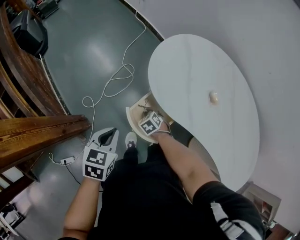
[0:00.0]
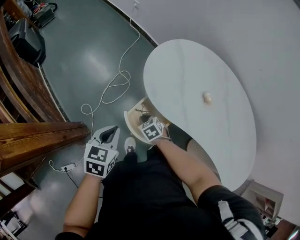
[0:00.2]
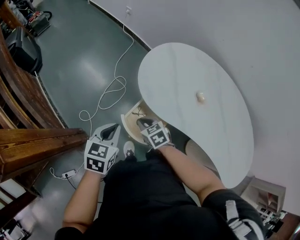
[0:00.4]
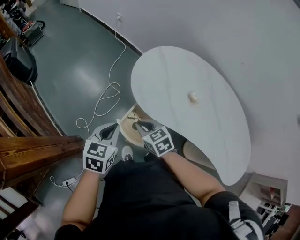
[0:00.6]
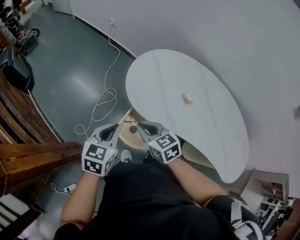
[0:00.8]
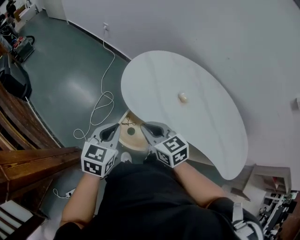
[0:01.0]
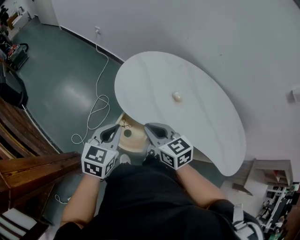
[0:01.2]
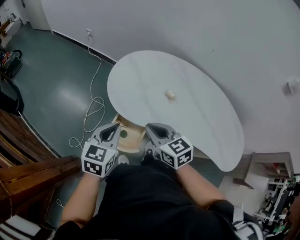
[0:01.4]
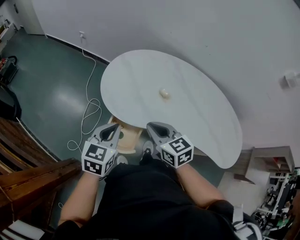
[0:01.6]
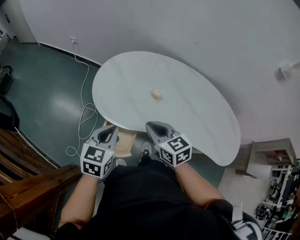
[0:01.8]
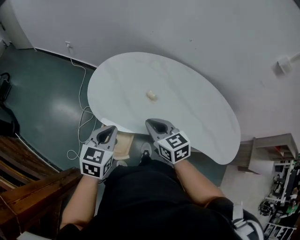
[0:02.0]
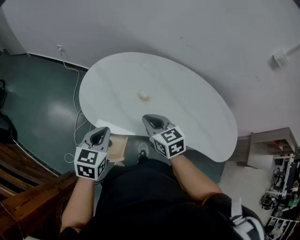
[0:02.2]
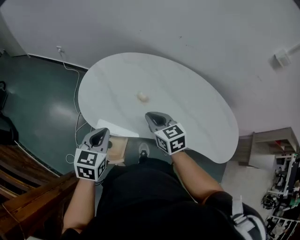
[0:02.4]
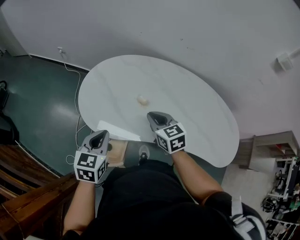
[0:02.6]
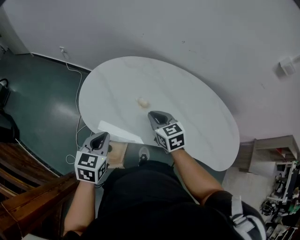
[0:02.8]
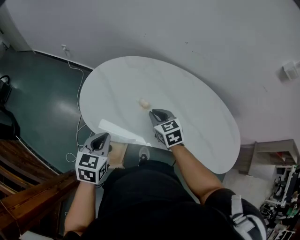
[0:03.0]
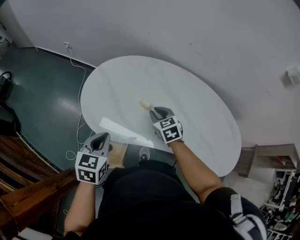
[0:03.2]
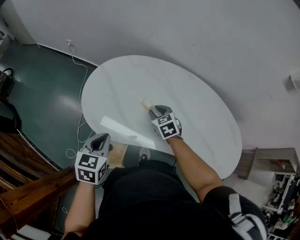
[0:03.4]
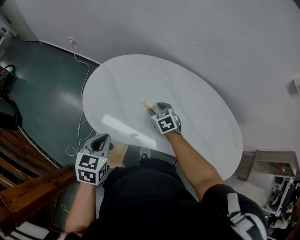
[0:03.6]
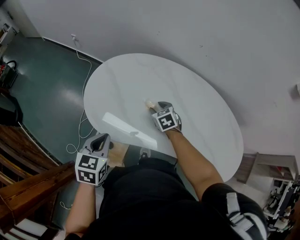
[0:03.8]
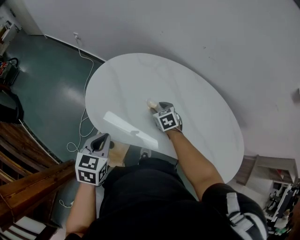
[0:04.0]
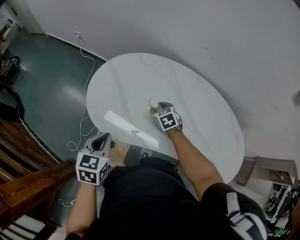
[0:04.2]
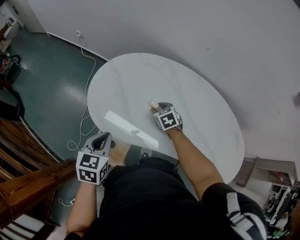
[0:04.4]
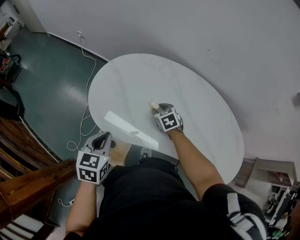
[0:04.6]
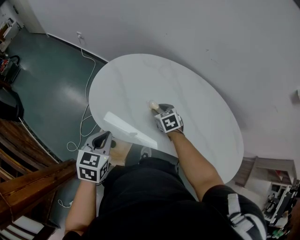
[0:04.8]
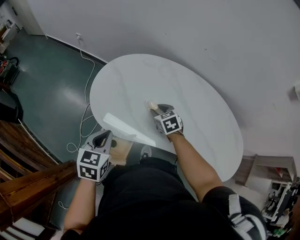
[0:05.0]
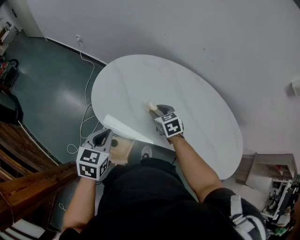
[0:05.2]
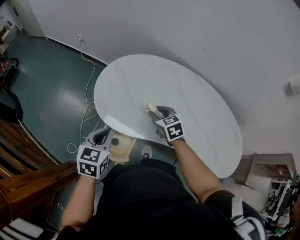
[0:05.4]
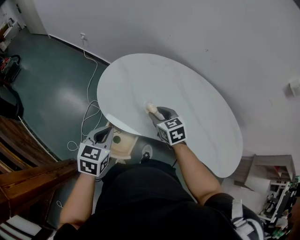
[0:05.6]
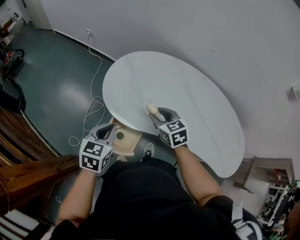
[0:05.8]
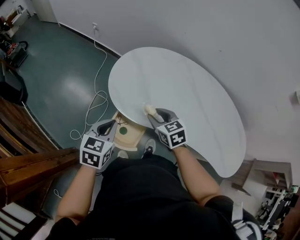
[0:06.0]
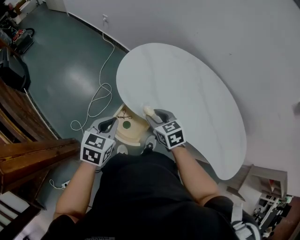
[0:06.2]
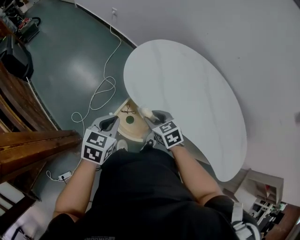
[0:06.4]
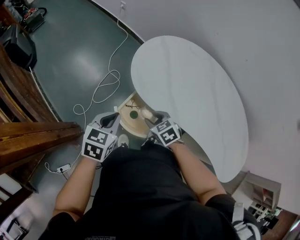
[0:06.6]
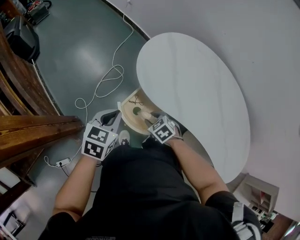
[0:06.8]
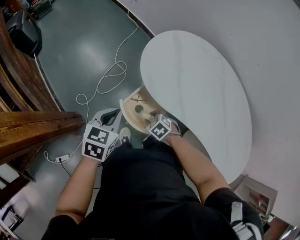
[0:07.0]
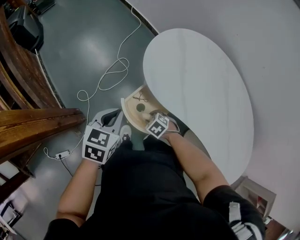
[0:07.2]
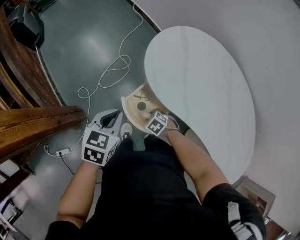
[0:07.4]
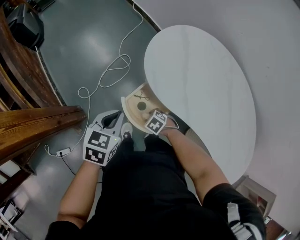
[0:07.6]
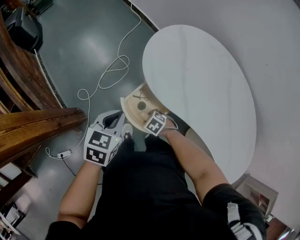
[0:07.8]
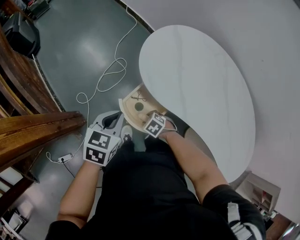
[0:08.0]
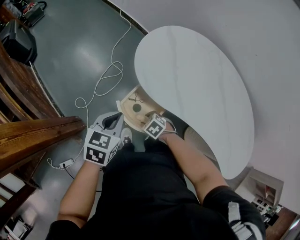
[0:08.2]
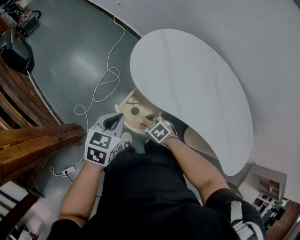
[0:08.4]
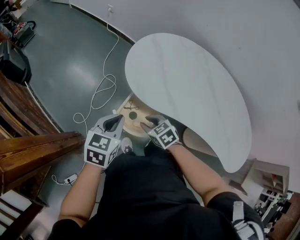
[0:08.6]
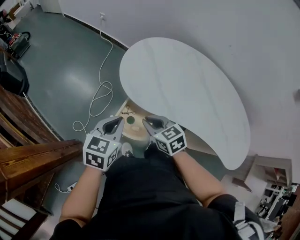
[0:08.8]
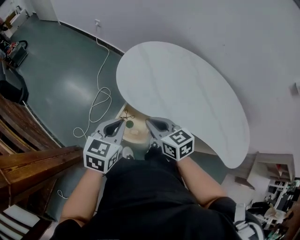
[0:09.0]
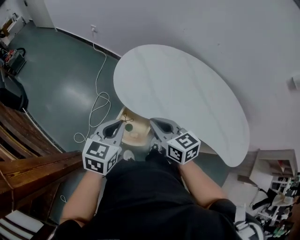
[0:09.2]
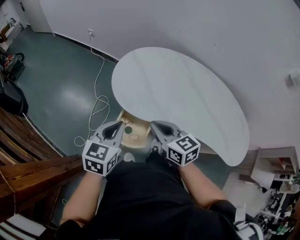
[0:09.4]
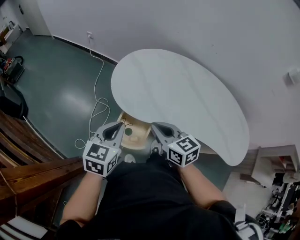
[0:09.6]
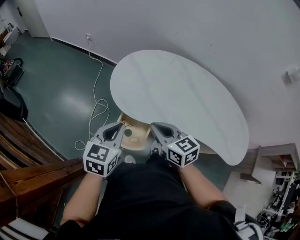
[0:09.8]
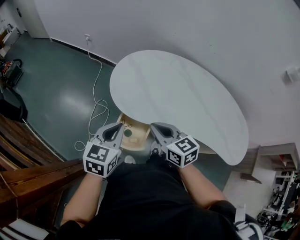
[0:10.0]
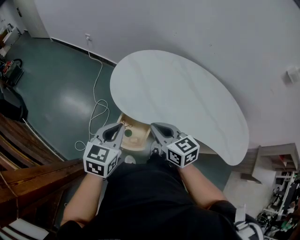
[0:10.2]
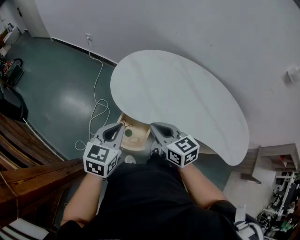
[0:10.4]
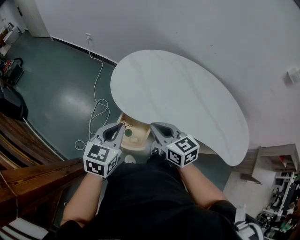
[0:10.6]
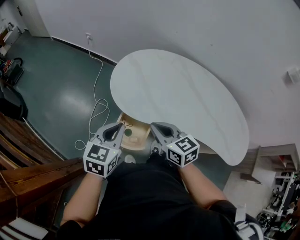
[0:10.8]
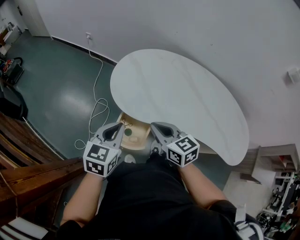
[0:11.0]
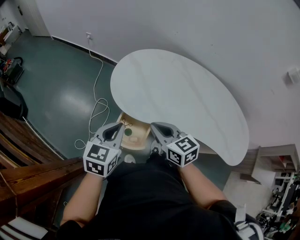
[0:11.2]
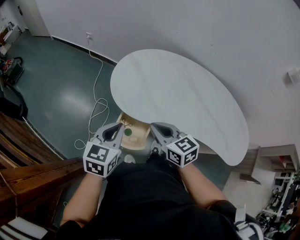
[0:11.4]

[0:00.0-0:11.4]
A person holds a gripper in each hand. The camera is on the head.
0:00.0 to 0:01.4: The left gripper is displaced upward, to the right and forward by about 20 cm, and changes its angle by some 30 degrees; the right gripper is displaced upward by some 35 cm, and points its fingers some 40 degrees further upward.
0:01.4 to 0:02.8: The right gripper heads to the right and forward, covering some 20 cm. Meanwhile the left gripper travels to the right and forward by some 10 cm.
0:02.8 to 0:04.2: The right gripper goes about 15 cm downward and forward, changes its angle by approximately 20 degrees, and opens its fingers.
0:04.2 to 0:05.6: The left gripper is displaced to the left by approximately 5 cm; the right gripper travels upward, backward and to the left by approximately 20 cm.
0:05.6 to 0:07.2: The left gripper moves approximately 15 cm; the right gripper heads downward, covering about 25 cm, and angles its fingers downward, by approximately 30 degrees.
0:07.2 to 0:08.6: The right gripper moves upward, some 15 cm, and turns by roughly 30 degrees.
0:08.6 to 0:10.0: The left gripper shifts approximately 5 cm upward. Meanwhile the right gripper travels upward by roughly 20 cm, swivels approximately 40 degrees, and closes.
0:10.0 to 0:11.4: Both grippers stay about where they are.

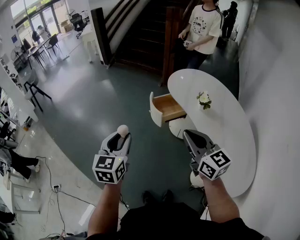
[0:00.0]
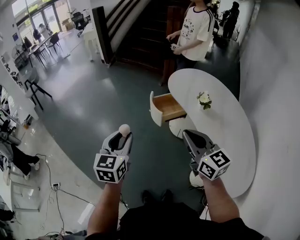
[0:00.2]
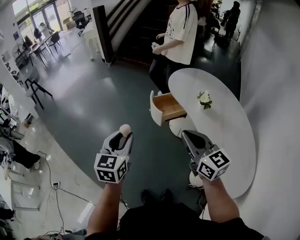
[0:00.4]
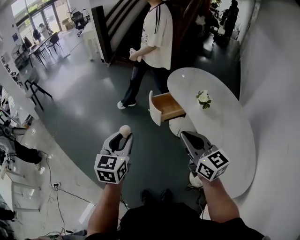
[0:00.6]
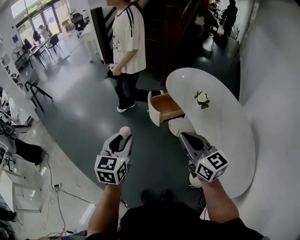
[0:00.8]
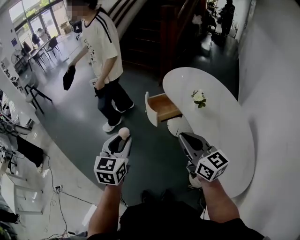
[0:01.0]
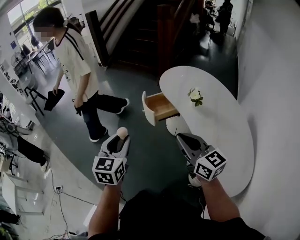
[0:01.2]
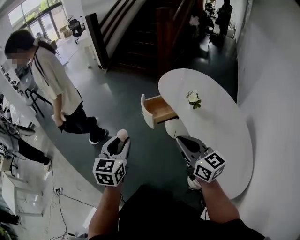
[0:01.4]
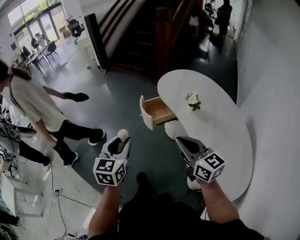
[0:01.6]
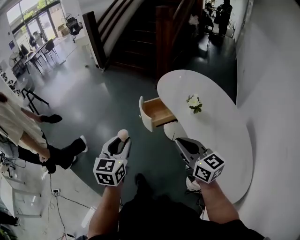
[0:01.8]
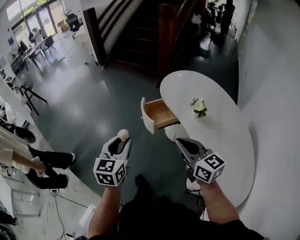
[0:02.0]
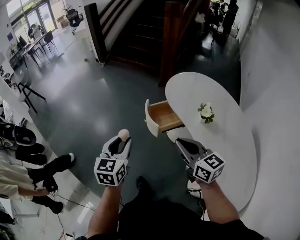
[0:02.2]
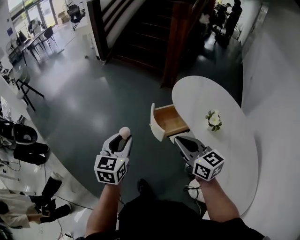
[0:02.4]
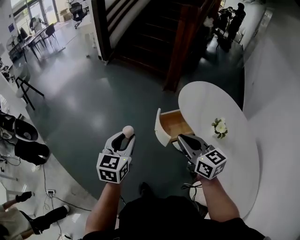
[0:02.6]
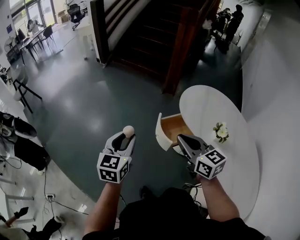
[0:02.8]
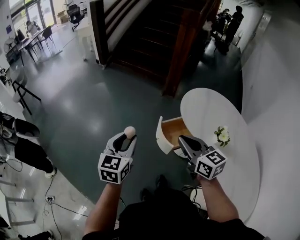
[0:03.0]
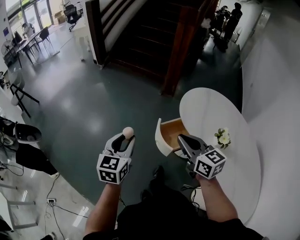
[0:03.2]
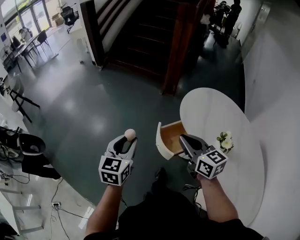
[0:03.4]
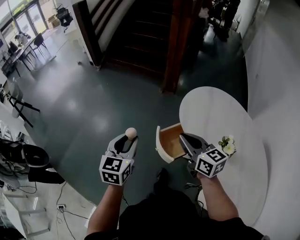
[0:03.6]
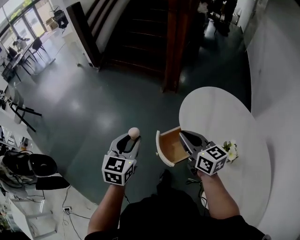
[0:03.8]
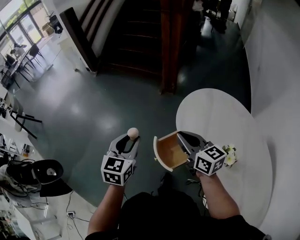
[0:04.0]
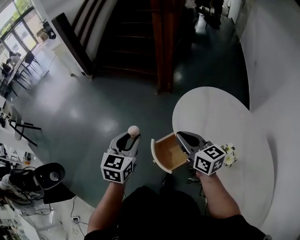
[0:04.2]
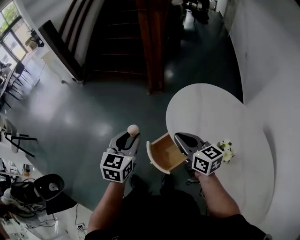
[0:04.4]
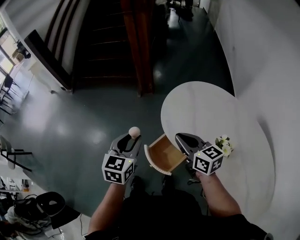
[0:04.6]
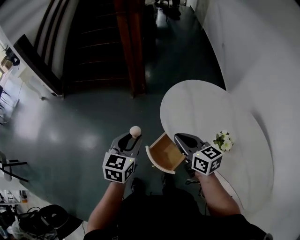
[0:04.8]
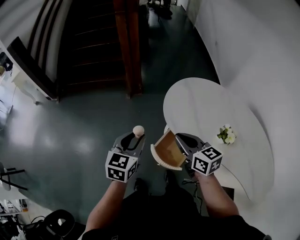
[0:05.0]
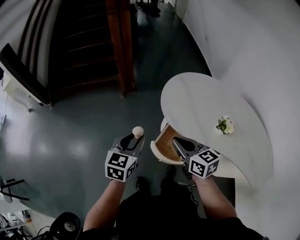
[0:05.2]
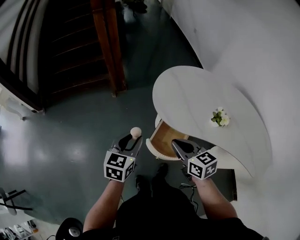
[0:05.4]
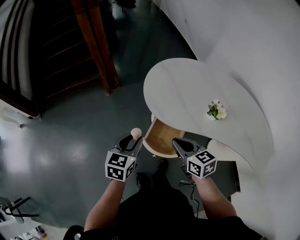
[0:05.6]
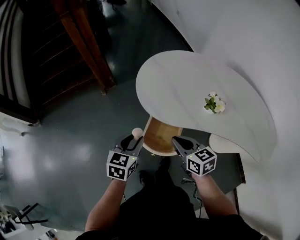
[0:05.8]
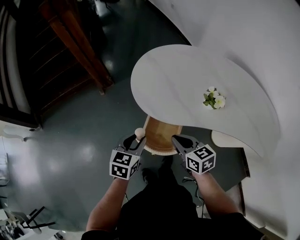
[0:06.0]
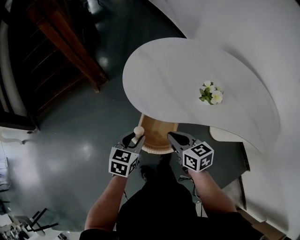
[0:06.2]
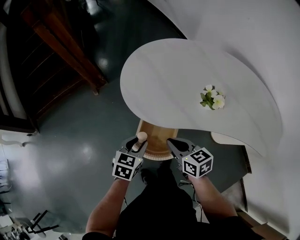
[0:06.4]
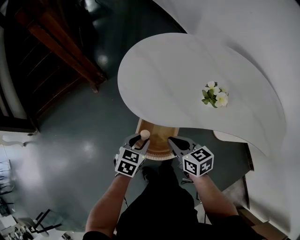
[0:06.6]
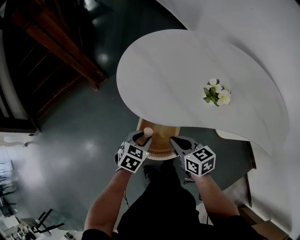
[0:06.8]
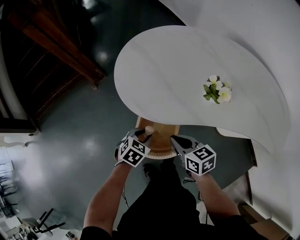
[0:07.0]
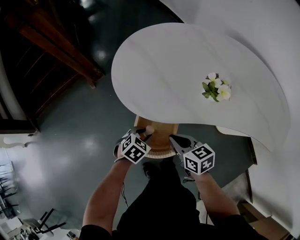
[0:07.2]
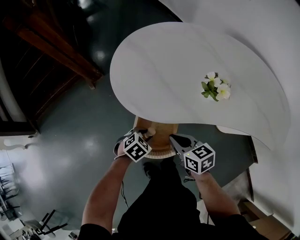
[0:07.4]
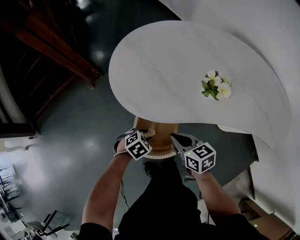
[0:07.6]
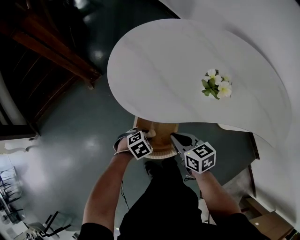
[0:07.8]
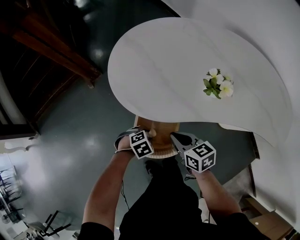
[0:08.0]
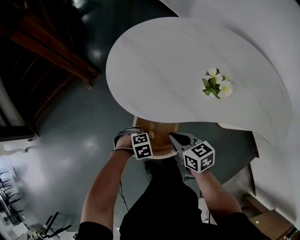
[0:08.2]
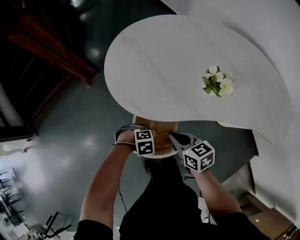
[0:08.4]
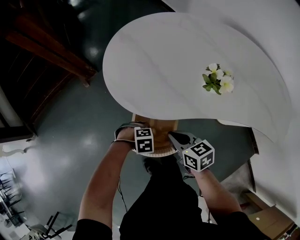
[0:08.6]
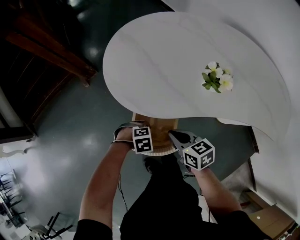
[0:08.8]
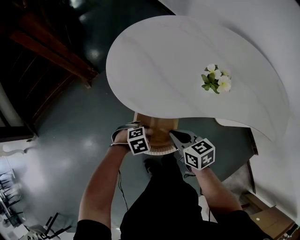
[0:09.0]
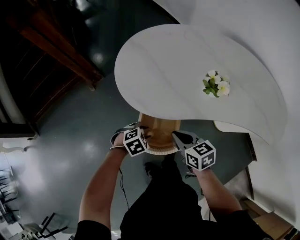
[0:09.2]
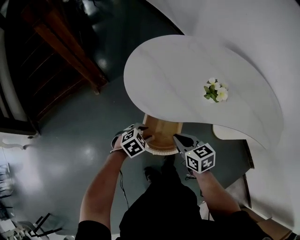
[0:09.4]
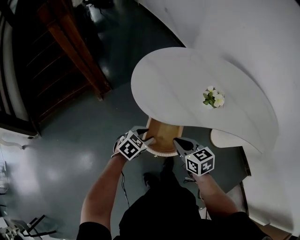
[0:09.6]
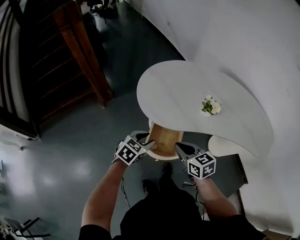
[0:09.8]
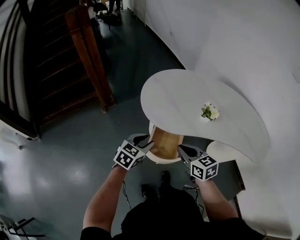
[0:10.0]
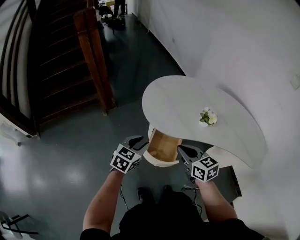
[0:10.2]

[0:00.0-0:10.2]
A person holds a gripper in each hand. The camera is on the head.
0:00.0 to 0:01.4: The grippers both shift to the right by approximately 5 cm.
0:01.4 to 0:03.0: The grippers both shift forward by roughly 30 cm.
0:03.0 to 0:04.4: The two grippers go roughly 25 cm forward and to the right.
0:04.4 to 0:05.8: The grippers both shift downward by roughly 10 cm. The right gripper swivels roughly 40 degrees, while the left gripper changes its angle by some 40 degrees.
0:05.8 to 0:07.2: The right gripper travels downward by some 15 cm. The left gripper is displaced downward and to the right by roughly 25 cm, and changes its angle by approximately 40 degrees.
0:07.2 to 0:08.8: The left gripper moves downward, some 5 cm, and rotates approximately 40 degrees.
0:08.8 to 0:10.2: The grippers both shift upward by about 25 cm. The right gripper turns by roughly 20 degrees; the left gripper points its fingers roughly 40 degrees further upward.

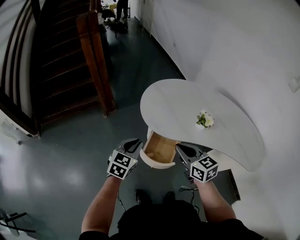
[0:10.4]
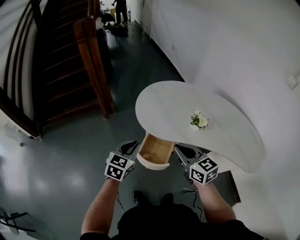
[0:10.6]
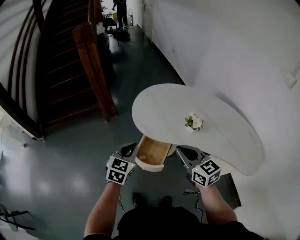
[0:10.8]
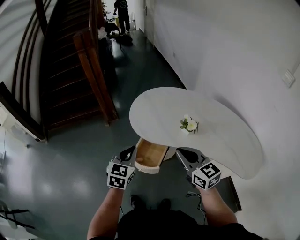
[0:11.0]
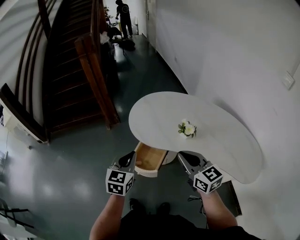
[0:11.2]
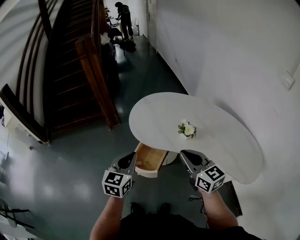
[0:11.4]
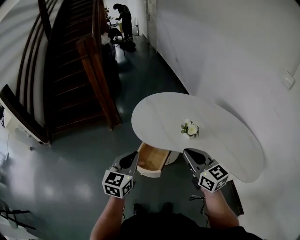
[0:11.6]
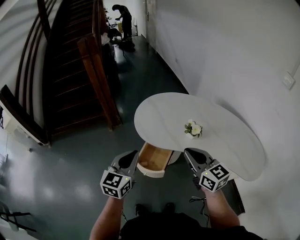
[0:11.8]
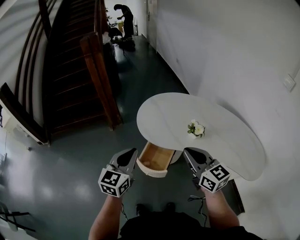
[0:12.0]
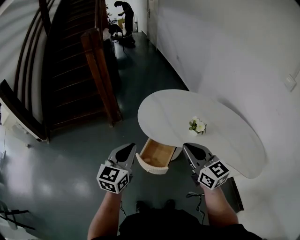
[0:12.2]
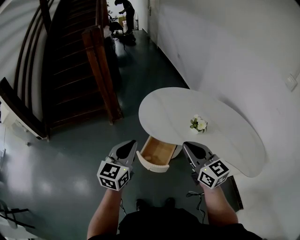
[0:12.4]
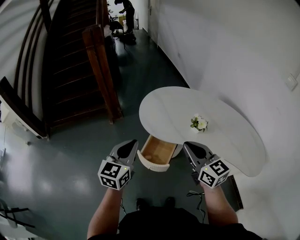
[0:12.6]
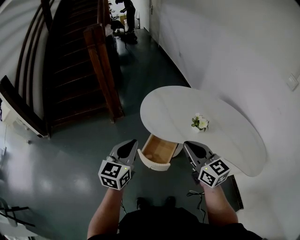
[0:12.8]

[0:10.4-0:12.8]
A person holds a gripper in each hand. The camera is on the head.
0:10.4 to 0:11.6: The right gripper heads to the right and upward, covering roughly 15 cm; the left gripper is displaced upward, to the right and backward by roughly 15 cm.
0:11.6 to 0:12.8: Both grippers travel together to the left, some 10 cm.
